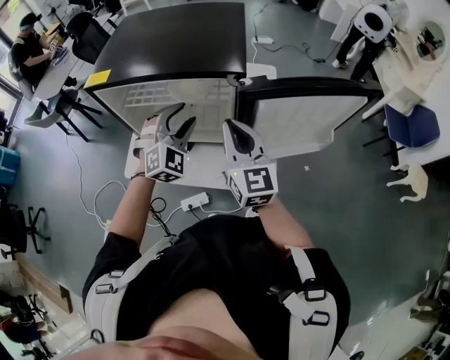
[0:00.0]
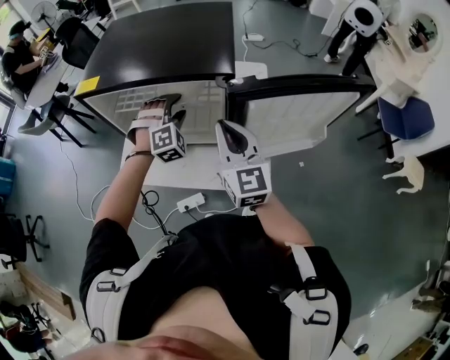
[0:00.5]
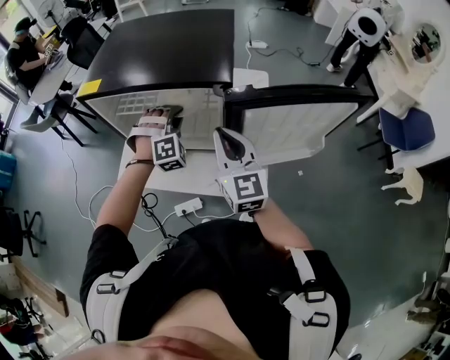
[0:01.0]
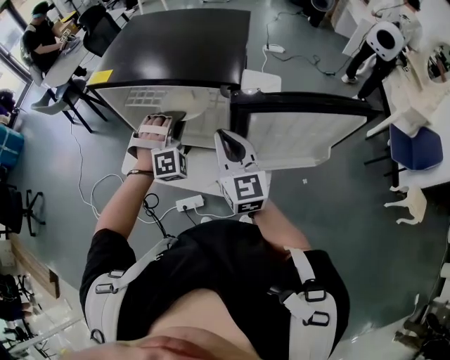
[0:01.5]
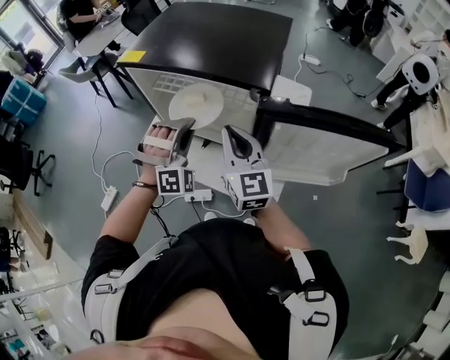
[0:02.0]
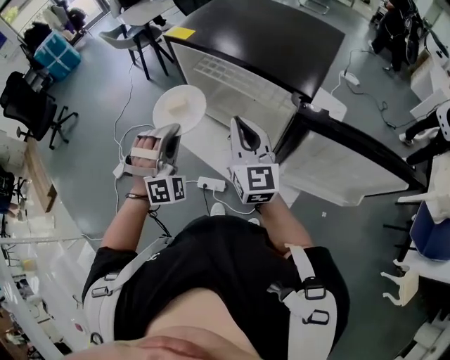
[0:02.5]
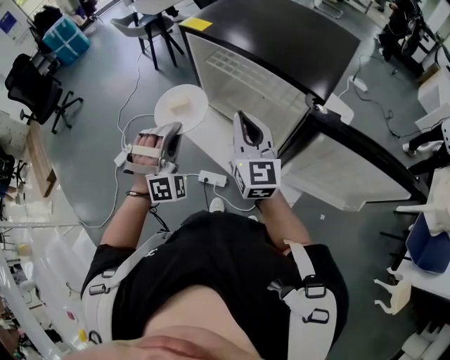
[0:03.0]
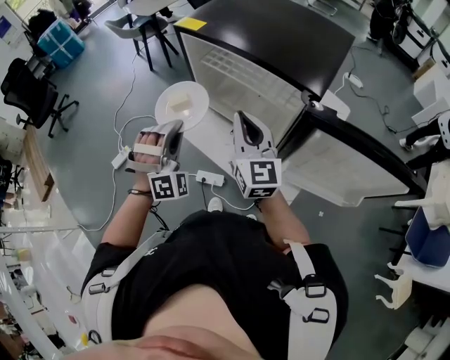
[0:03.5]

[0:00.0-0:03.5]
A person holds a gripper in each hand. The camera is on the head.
0:00.0 to 0:02.0: The left gripper travels forward and back again, approximately 5 cm each way, rotates some 30 degrees, and closes up.
0:02.0 to 0:03.5: The right gripper moves to the left, roughly 5 cm. The left gripper is displaced to the left by about 15 cm, and swivels roughly 20 degrees.

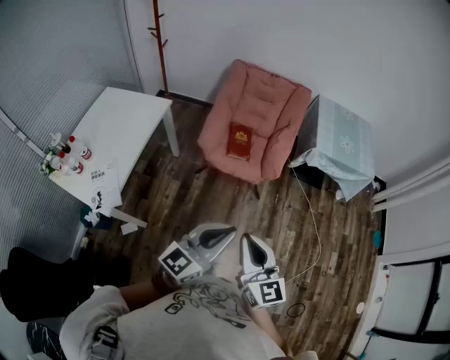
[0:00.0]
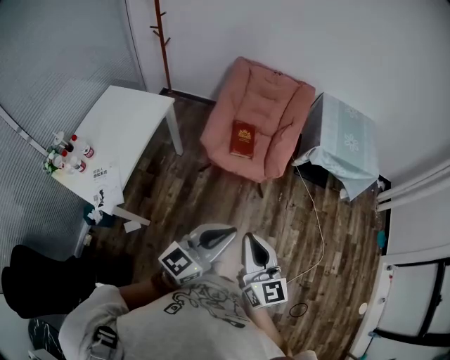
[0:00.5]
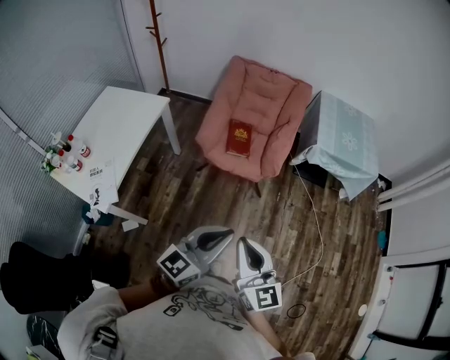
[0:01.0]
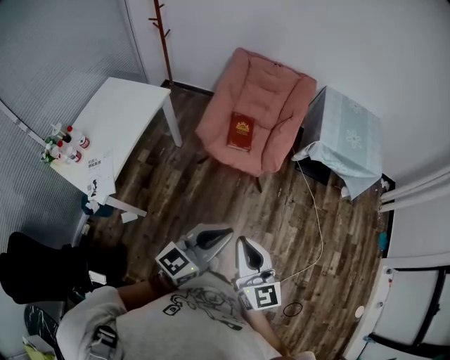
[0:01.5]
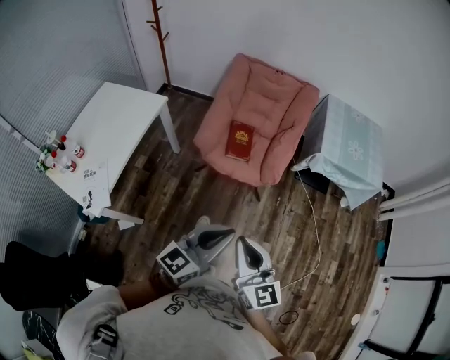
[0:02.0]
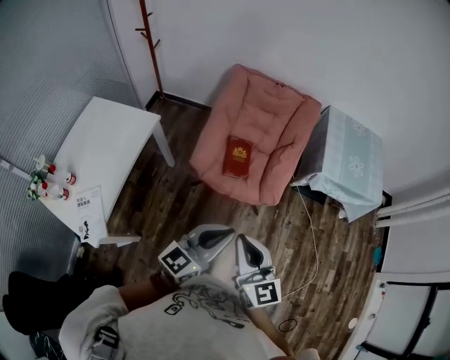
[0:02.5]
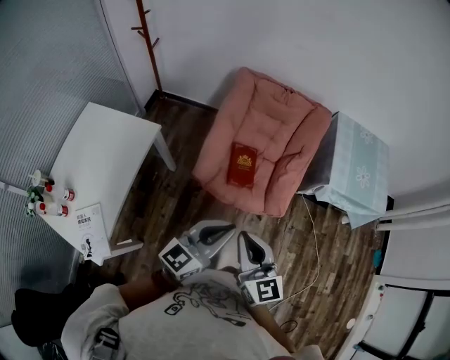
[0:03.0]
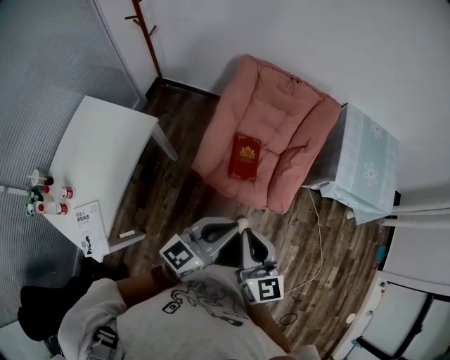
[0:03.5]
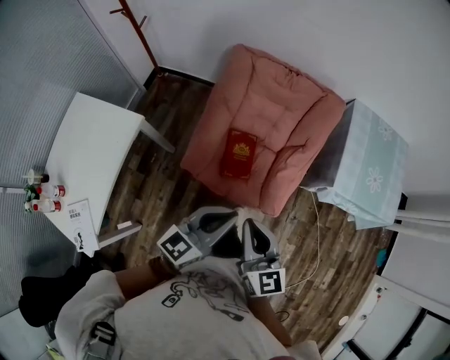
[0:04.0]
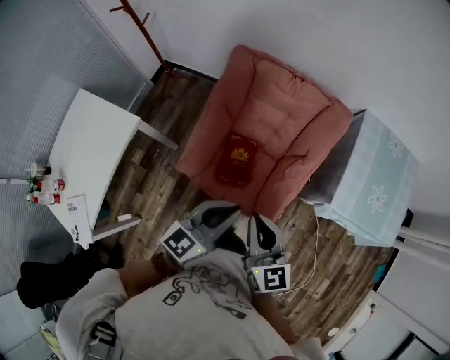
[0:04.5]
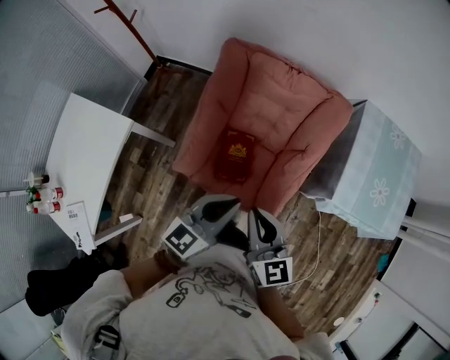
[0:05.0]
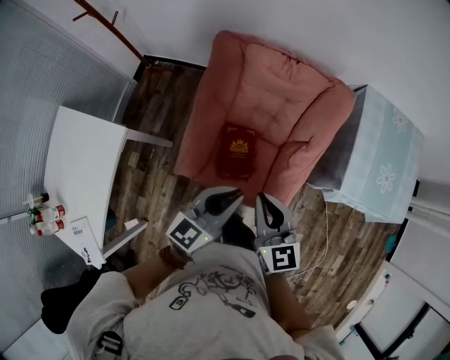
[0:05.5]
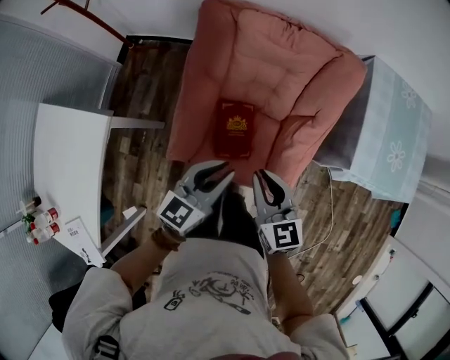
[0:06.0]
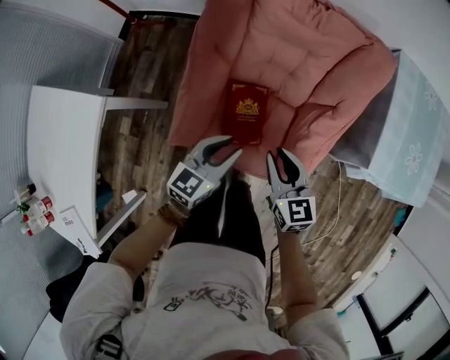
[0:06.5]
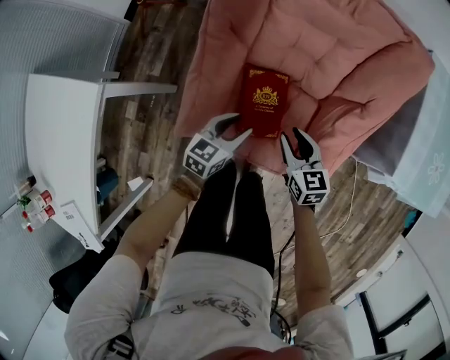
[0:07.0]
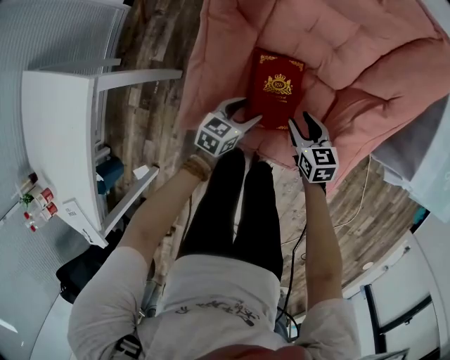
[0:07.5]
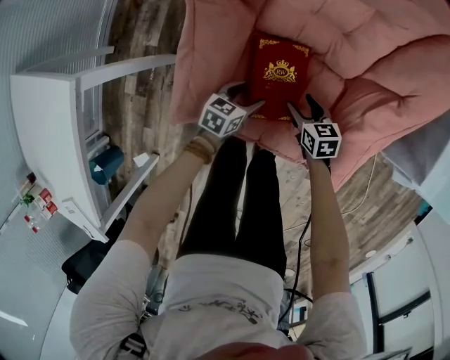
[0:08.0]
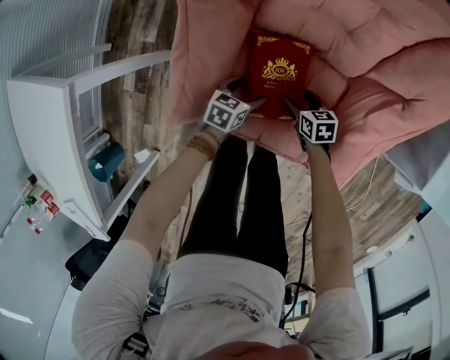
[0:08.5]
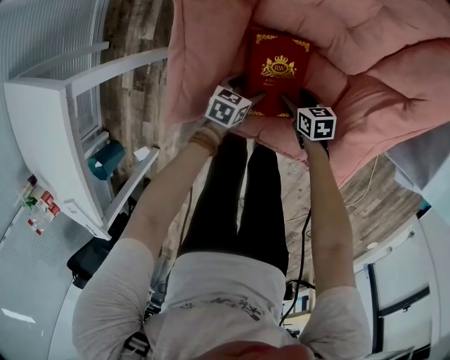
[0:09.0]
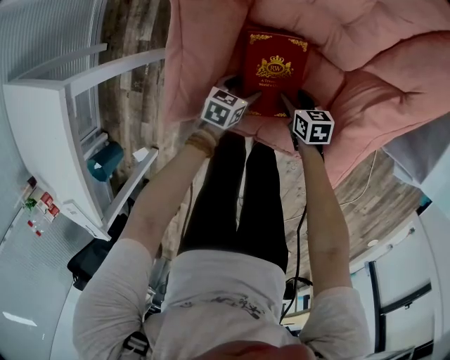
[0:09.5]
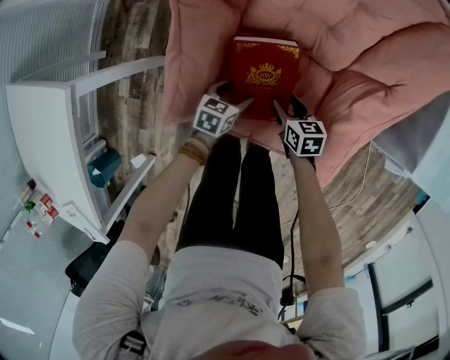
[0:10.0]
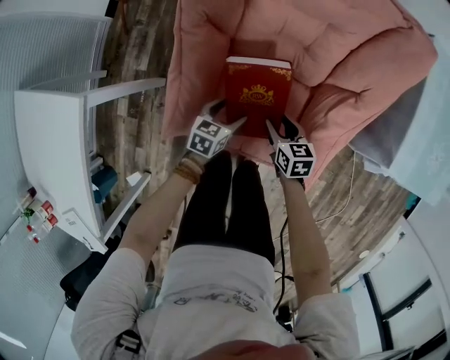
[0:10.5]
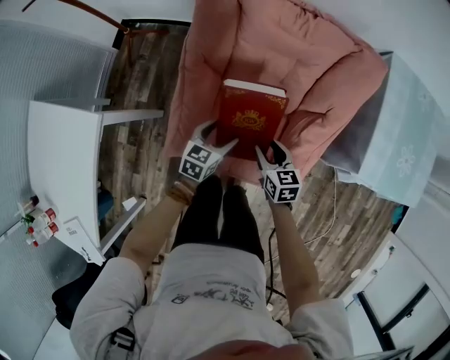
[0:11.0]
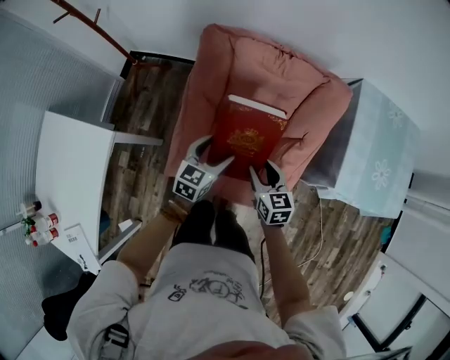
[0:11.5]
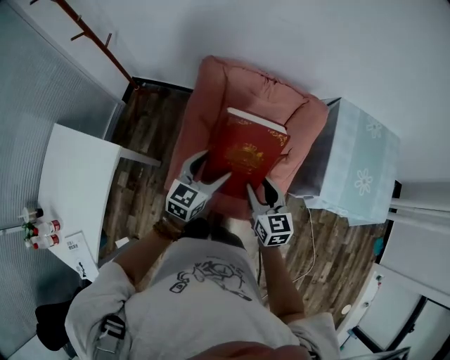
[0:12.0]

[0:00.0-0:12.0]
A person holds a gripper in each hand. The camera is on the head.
0:00.0 to 0:02.0: Both grippers travel together forward and to the right, approximately 10 cm.
0:02.0 to 0:04.0: Both grippers are carried forward, about 50 cm.
0:04.0 to 0:06.0: Both grippers move forward and downward, approximately 30 cm.
0:06.0 to 0:08.0: The grippers both shift downward by some 50 cm. The left gripper swivels about 30 degrees, and opens. Meanwhile the right gripper swivels roughly 30 degrees, and opens.
0:08.0 to 0:10.0: The right gripper goes downward and returns, some 5 cm each way.
0:10.0 to 0:12.0: Both grippers move upward, roughly 60 cm. The left gripper tilts its fingers approximately 30 degrees upward; the right gripper turns by approximately 30 degrees.

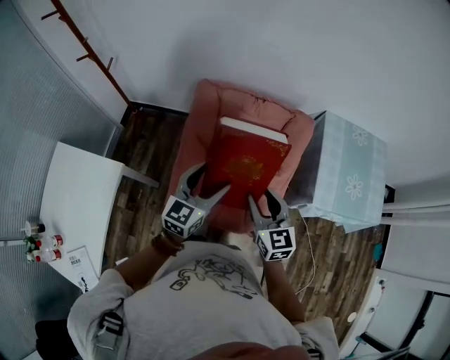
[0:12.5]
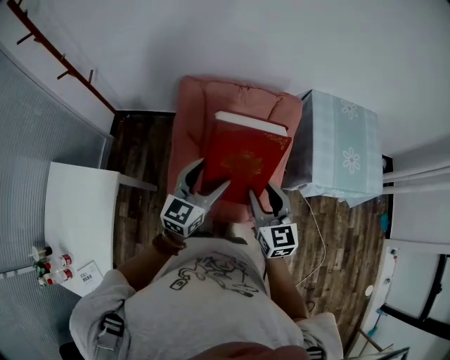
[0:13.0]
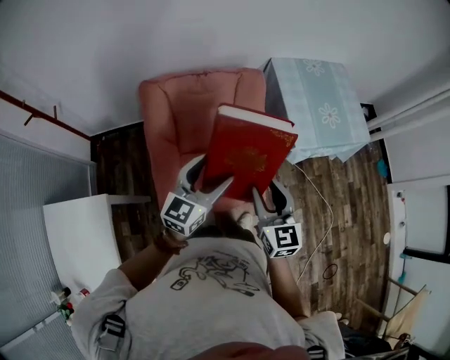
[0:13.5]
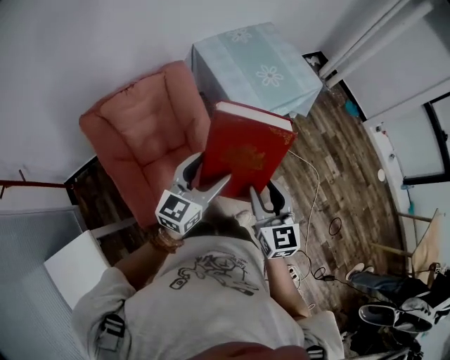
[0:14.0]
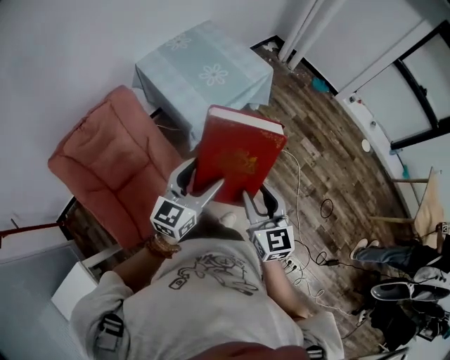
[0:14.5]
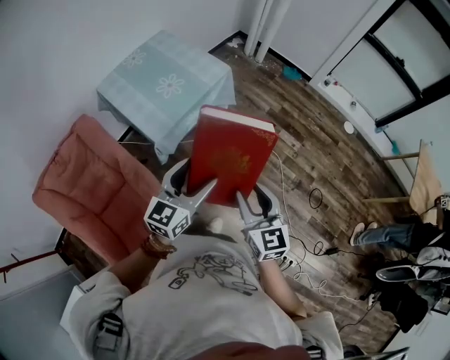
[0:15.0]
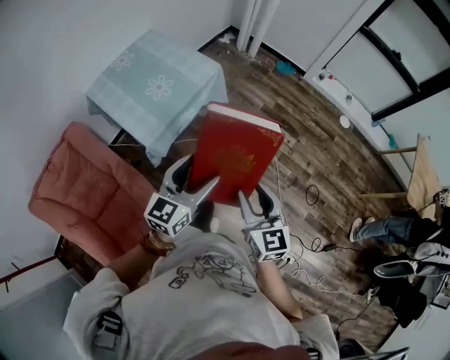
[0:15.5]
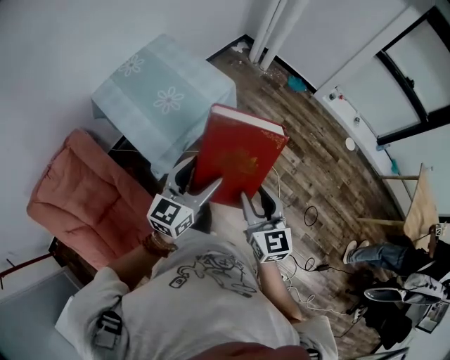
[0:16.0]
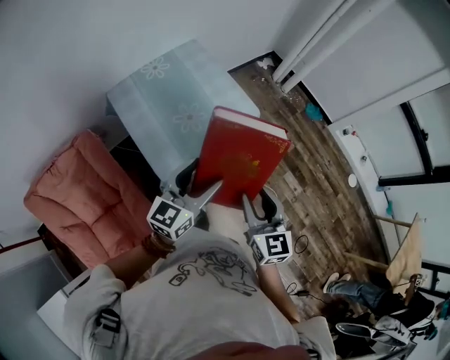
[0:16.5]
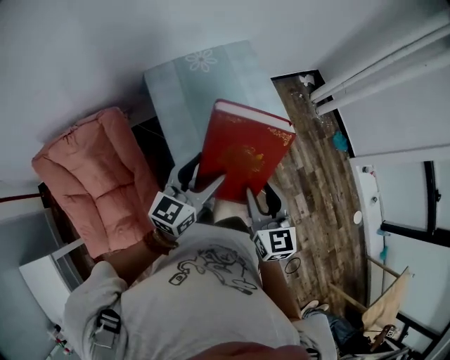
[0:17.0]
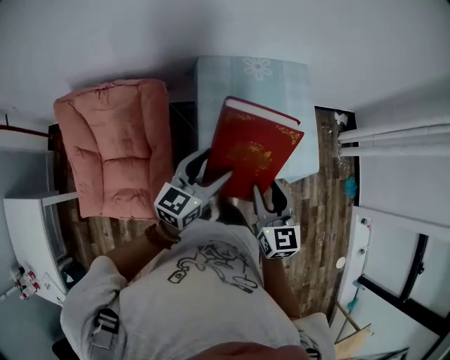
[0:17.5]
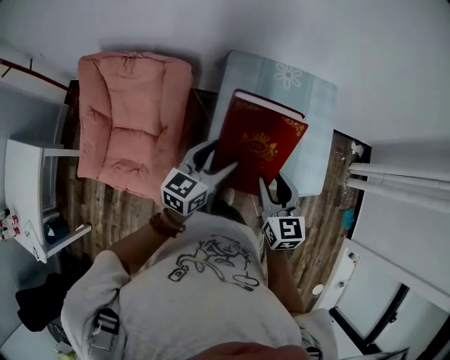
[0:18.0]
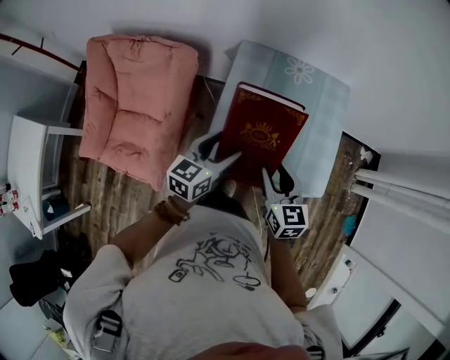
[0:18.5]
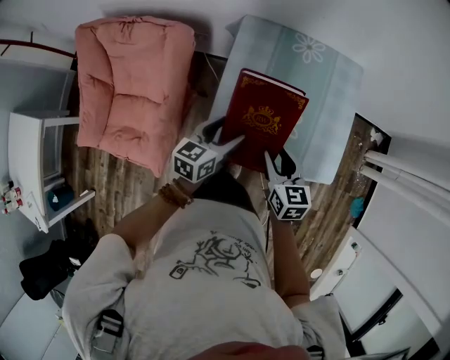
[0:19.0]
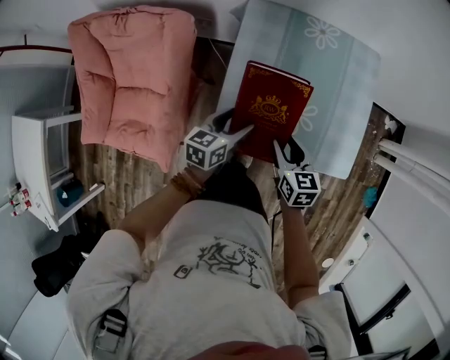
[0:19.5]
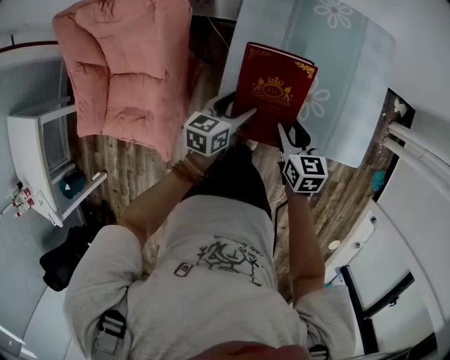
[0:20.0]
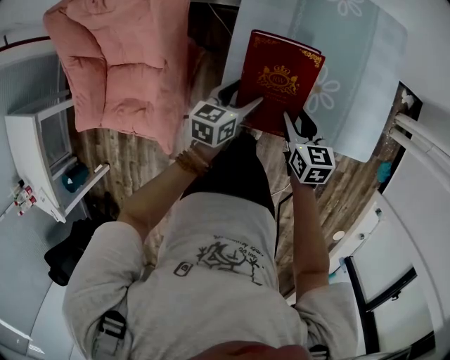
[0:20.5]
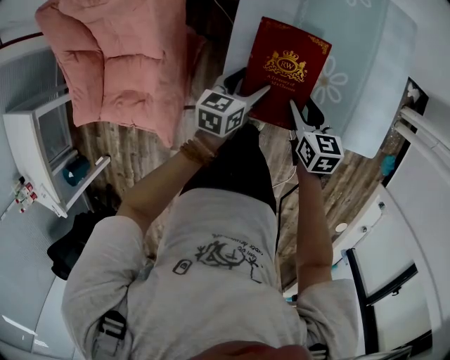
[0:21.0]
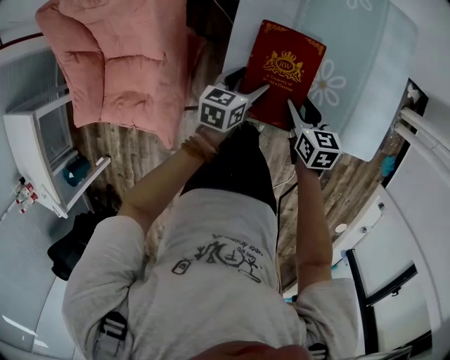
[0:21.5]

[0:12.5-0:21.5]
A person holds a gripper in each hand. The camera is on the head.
0:12.5 to 0:14.5: Both grippers are carried approximately 50 cm. The left gripper changes its angle by roughly 50 degrees. Meanwhile the right gripper turns by about 60 degrees.
0:14.5 to 0:17.0: The pair of grippers is taken some 40 cm.
0:17.0 to 0:19.5: Both grippers move downward, roughly 25 cm. The right gripper changes its angle by roughly 40 degrees, while the left gripper turns by some 40 degrees.
0:19.5 to 0:21.5: The grippers both shift downward by approximately 15 cm.

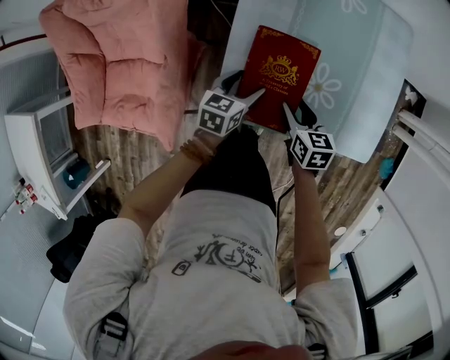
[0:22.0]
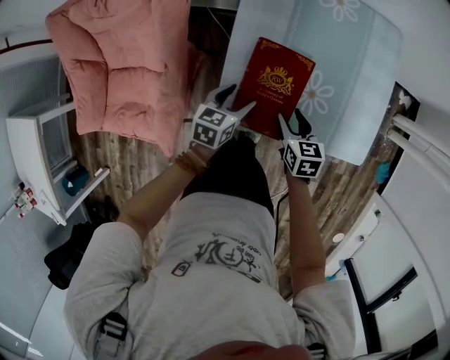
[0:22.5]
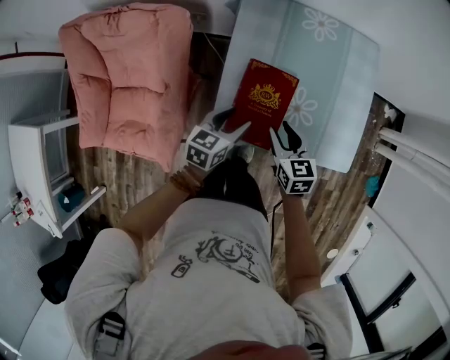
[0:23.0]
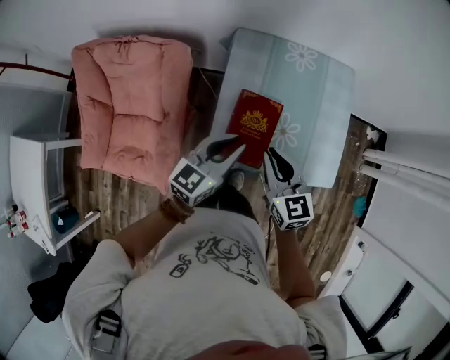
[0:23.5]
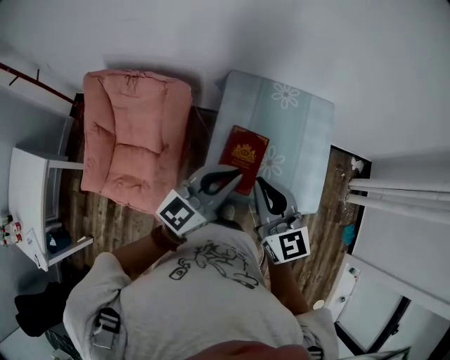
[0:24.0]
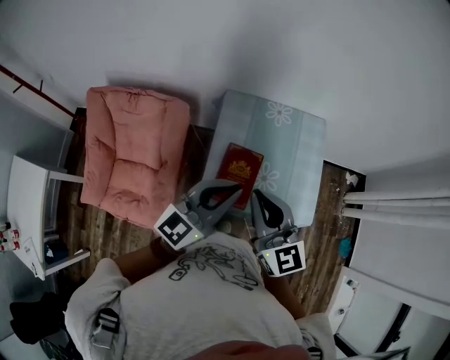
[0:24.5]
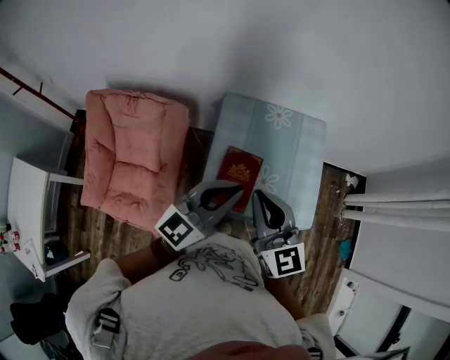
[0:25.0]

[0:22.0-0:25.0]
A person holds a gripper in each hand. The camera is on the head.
0:22.0 to 0:23.5: The grippers both shift upward by about 30 cm. The left gripper rotates about 30 degrees, and closes its fingers. The right gripper rotates about 30 degrees, and closes.
0:23.5 to 0:25.0: Both grippers move upward, about 20 cm. The right gripper swivels roughly 20 degrees. Meanwhile the left gripper rotates approximately 20 degrees.
